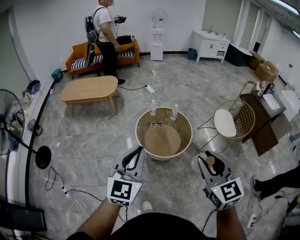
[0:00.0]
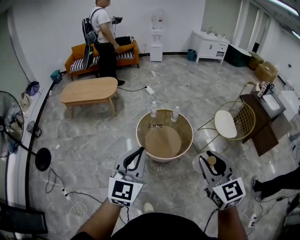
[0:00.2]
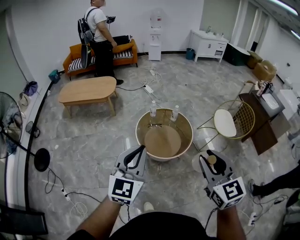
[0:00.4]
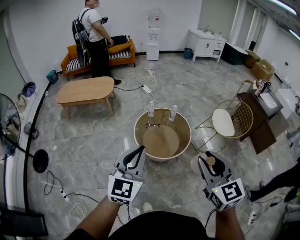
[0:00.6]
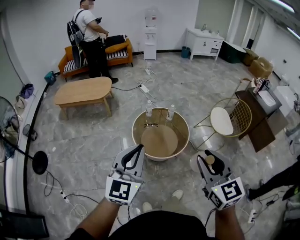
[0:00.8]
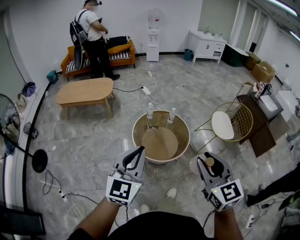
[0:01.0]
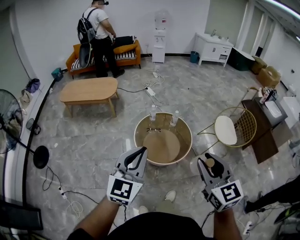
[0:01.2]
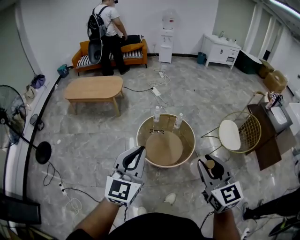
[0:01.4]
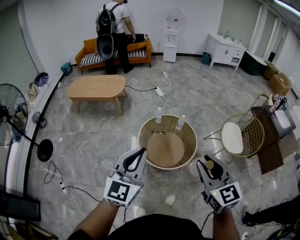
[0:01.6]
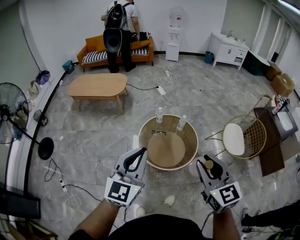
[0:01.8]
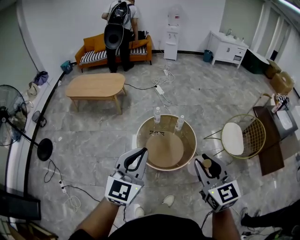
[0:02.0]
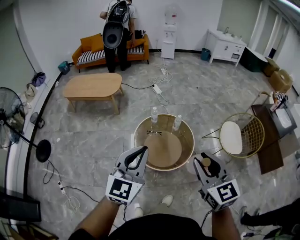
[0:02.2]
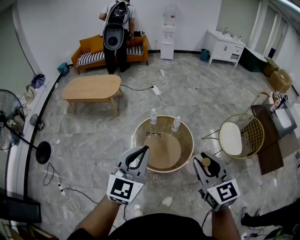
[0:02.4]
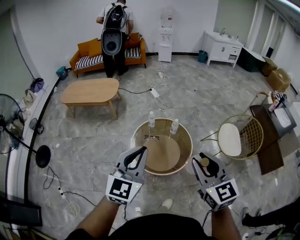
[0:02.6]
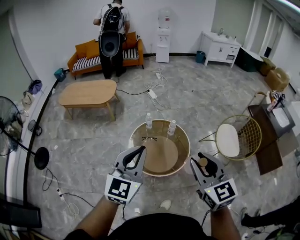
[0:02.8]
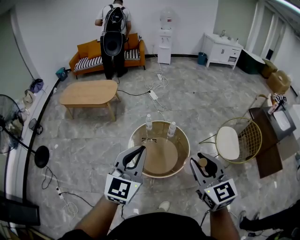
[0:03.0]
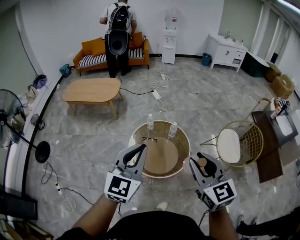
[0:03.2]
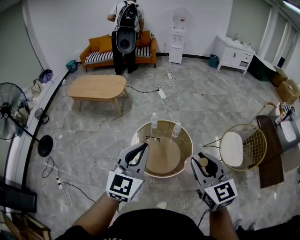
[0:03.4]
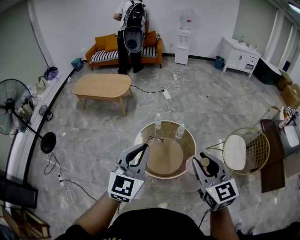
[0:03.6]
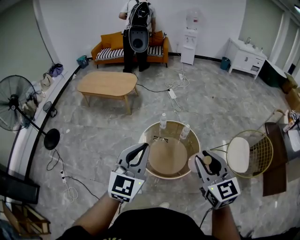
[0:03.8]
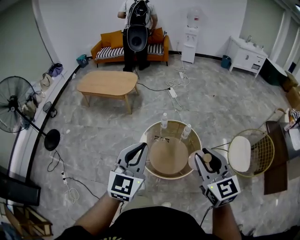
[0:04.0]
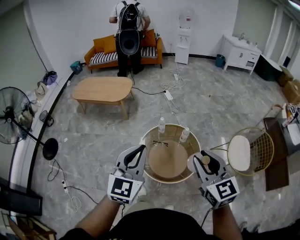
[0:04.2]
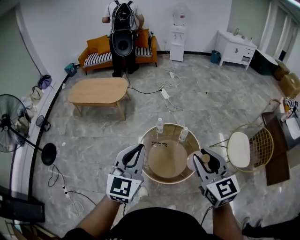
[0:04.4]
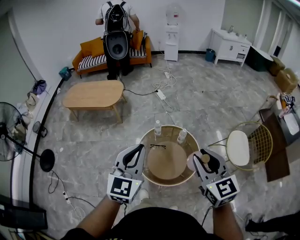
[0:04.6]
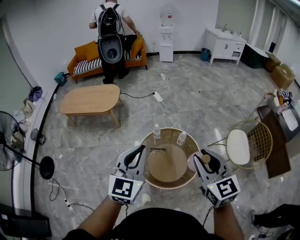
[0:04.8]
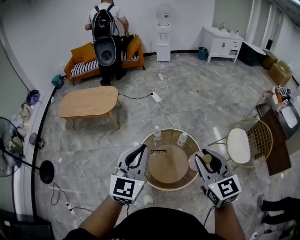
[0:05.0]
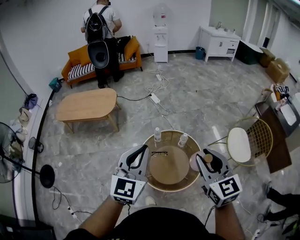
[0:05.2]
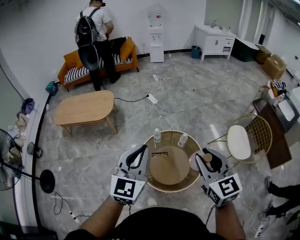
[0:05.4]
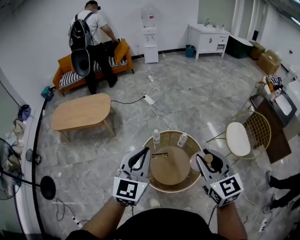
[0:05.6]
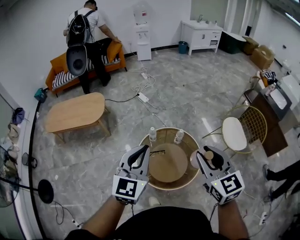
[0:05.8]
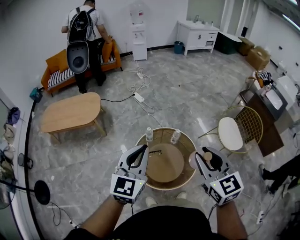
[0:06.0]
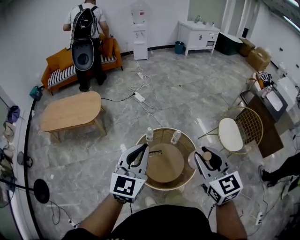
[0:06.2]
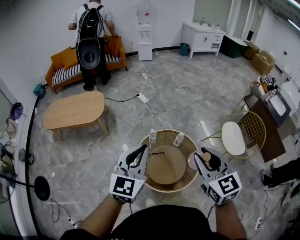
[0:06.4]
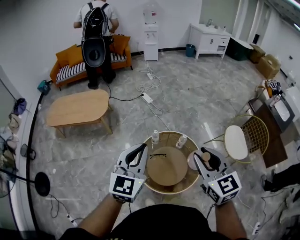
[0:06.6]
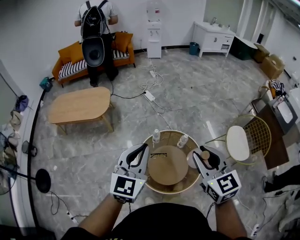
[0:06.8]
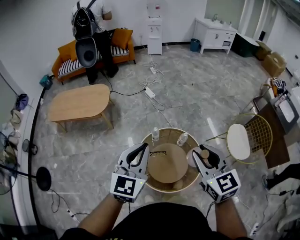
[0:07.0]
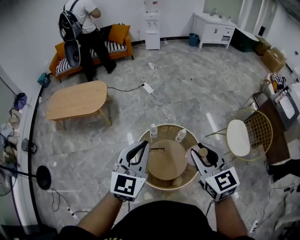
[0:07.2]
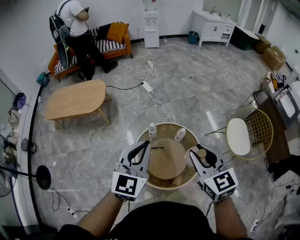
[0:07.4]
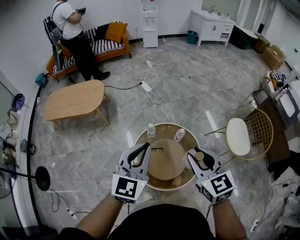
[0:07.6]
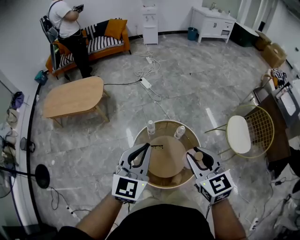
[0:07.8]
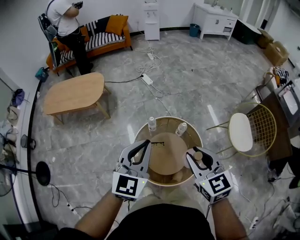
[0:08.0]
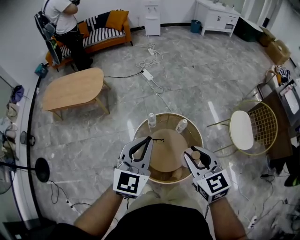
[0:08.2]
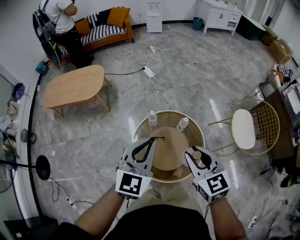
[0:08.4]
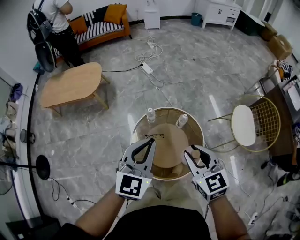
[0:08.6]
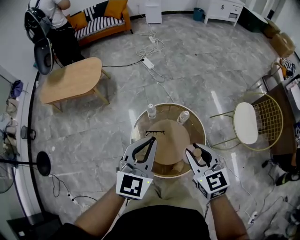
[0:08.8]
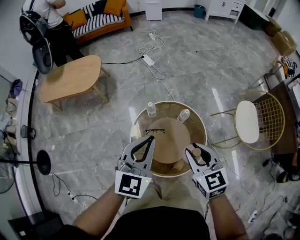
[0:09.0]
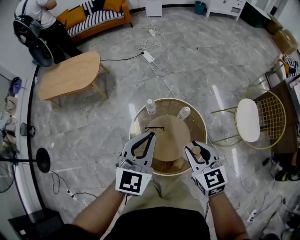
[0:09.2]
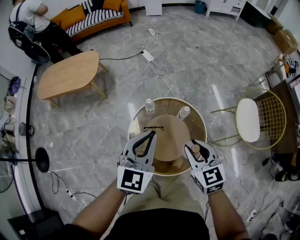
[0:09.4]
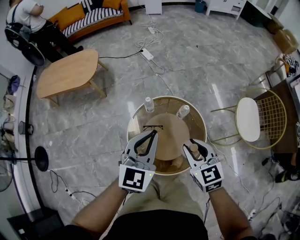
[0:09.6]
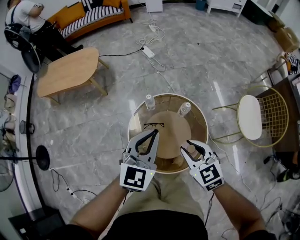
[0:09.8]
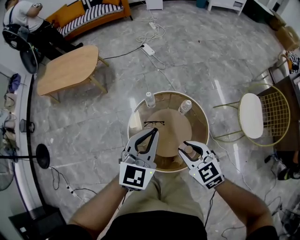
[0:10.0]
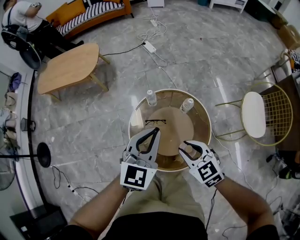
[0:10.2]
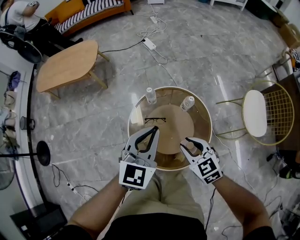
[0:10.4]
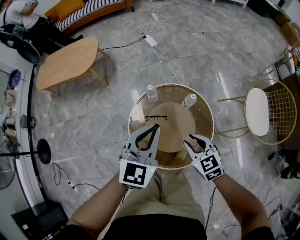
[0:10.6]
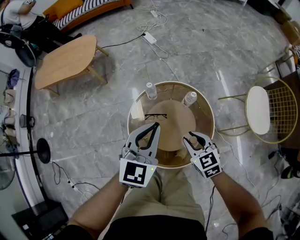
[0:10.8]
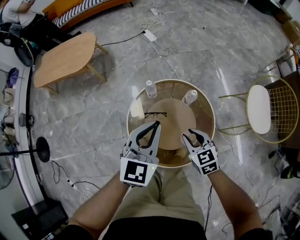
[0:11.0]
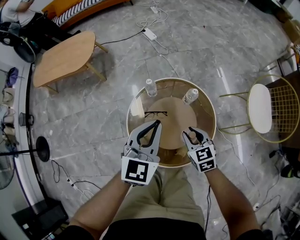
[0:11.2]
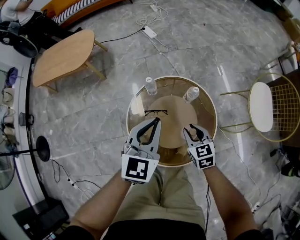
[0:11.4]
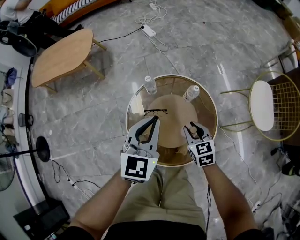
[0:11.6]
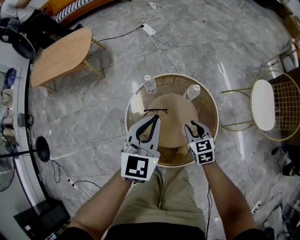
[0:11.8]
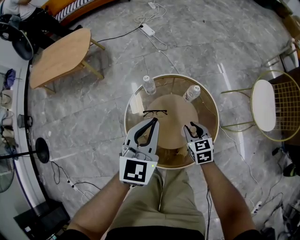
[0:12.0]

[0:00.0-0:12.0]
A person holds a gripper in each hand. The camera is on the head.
0:00.0 to 0:01.6: Both grippers travel together forward, some 10 cm.
0:01.6 to 0:03.0: The left gripper goes some 15 cm to the right and forward. The right gripper travels forward and to the right by approximately 10 cm.
0:03.0 to 0:04.4: Both grippers move forward, approximately 10 cm.
0:04.4 to 0:06.0: The left gripper moves forward and to the left, some 15 cm, and swivels about 20 degrees. Meanwhile the right gripper moves to the left and forward, approximately 10 cm.
0:06.0 to 0:07.6: The right gripper goes some 10 cm forward and downward. The left gripper shifts some 5 cm forward.
0:07.6 to 0:09.0: The two grippers go some 10 cm downward.
0:09.0 to 0:10.4: The right gripper heads downward, covering approximately 15 cm, while the left gripper goes roughly 10 cm downward.
0:10.4 to 0:12.0: The left gripper goes about 10 cm downward. The right gripper heads downward, covering about 20 cm, and changes its angle by roughly 20 degrees.

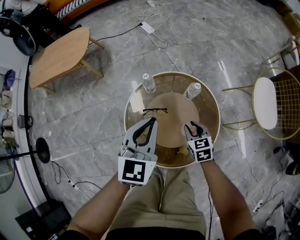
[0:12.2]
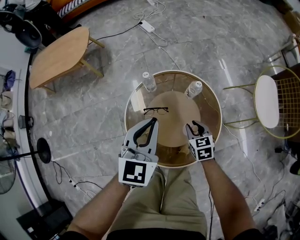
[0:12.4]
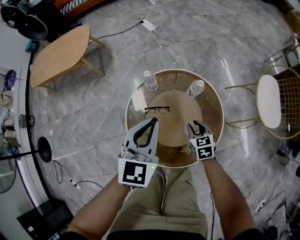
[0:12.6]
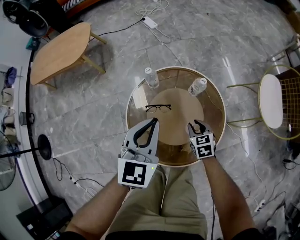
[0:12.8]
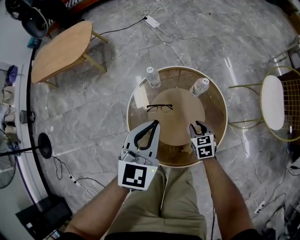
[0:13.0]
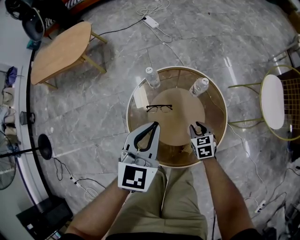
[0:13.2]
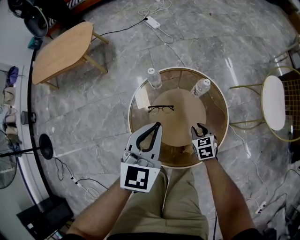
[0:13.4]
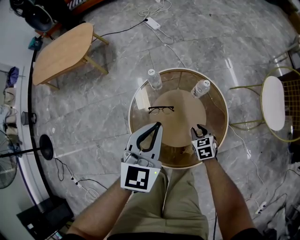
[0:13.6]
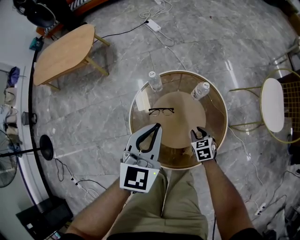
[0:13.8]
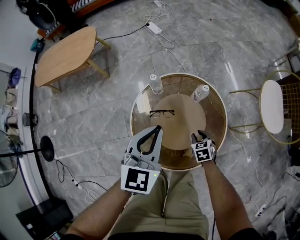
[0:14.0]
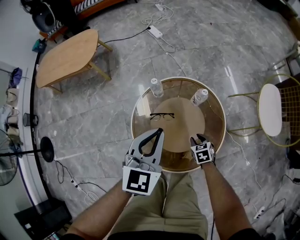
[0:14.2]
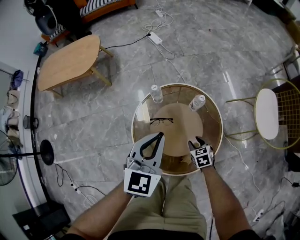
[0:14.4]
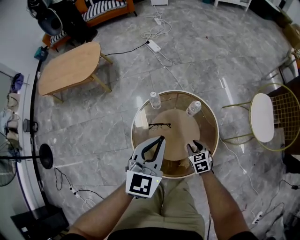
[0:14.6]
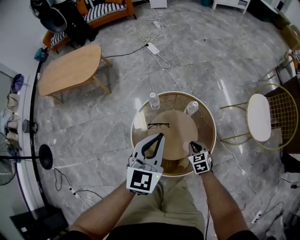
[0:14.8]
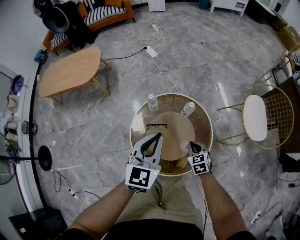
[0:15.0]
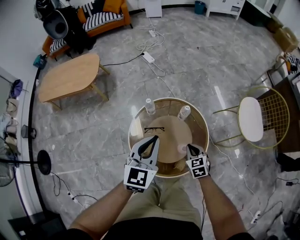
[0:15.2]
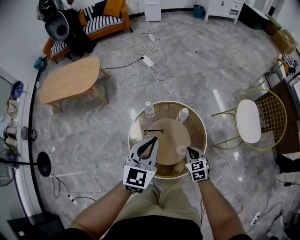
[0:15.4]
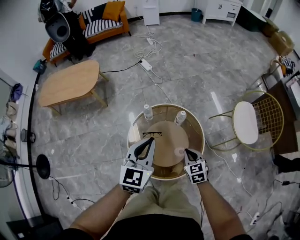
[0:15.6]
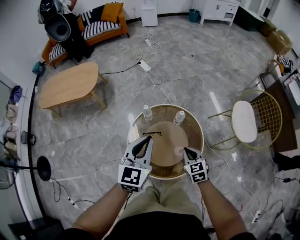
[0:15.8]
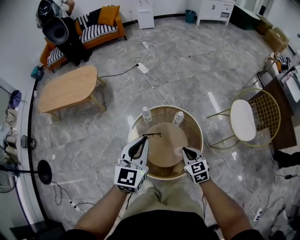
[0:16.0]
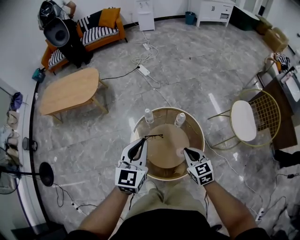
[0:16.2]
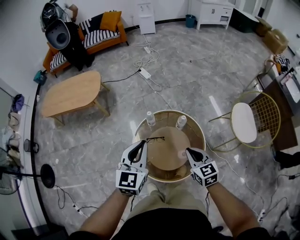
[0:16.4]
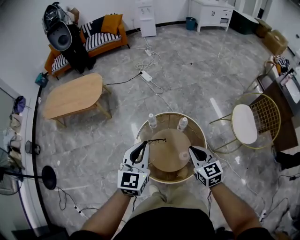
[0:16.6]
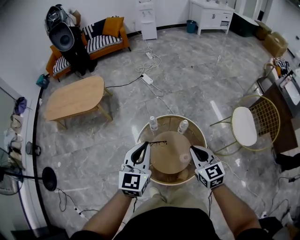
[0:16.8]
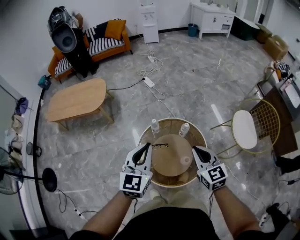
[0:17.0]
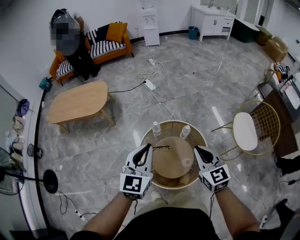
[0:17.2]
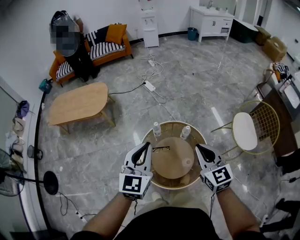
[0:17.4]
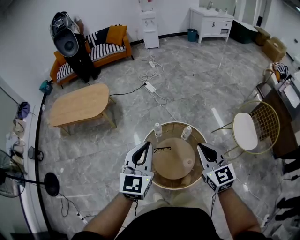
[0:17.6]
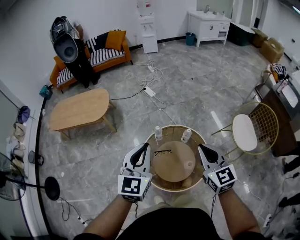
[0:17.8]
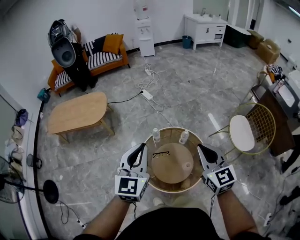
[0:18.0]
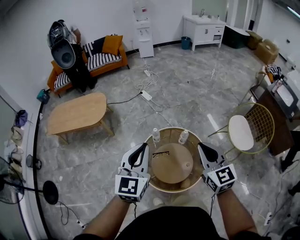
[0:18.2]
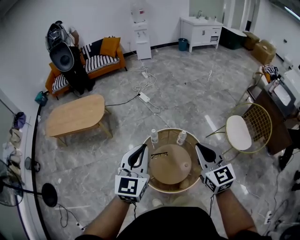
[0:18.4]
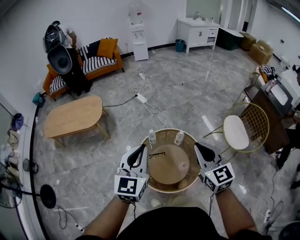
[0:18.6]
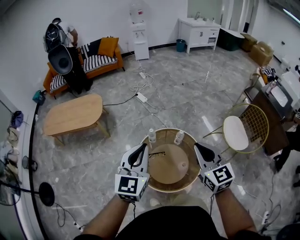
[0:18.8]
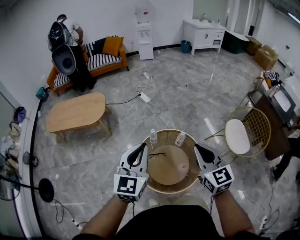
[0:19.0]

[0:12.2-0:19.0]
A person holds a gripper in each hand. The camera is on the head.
0:12.2 to 0:13.6: The right gripper is displaced downward by approximately 10 cm.
0:13.6 to 0:15.0: The grippers both shift upward by approximately 15 cm. The right gripper closes up.
0:15.0 to 0:16.2: The right gripper is displaced upward by about 20 cm, while the left gripper heads upward, covering approximately 10 cm.
0:16.2 to 0:17.6: The right gripper travels upward by roughly 20 cm, while the left gripper travels upward by approximately 10 cm.
0:17.6 to 0:19.0: The left gripper shifts by about 5 cm, while the right gripper is displaced upward by roughly 5 cm.

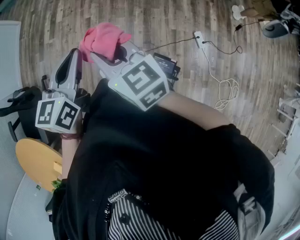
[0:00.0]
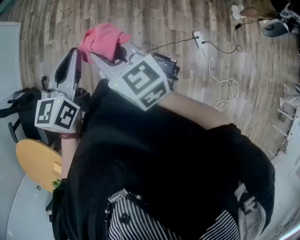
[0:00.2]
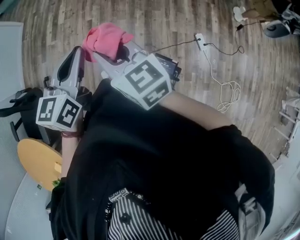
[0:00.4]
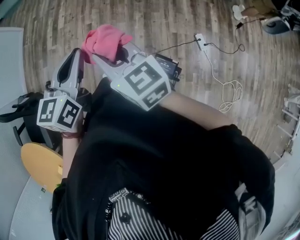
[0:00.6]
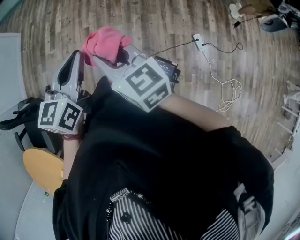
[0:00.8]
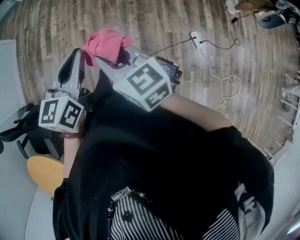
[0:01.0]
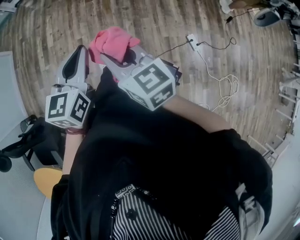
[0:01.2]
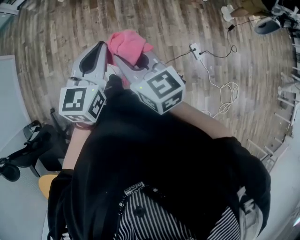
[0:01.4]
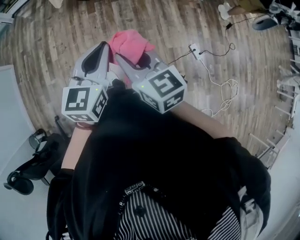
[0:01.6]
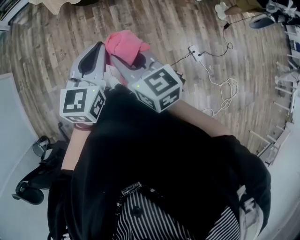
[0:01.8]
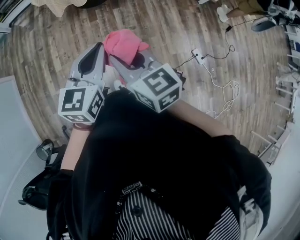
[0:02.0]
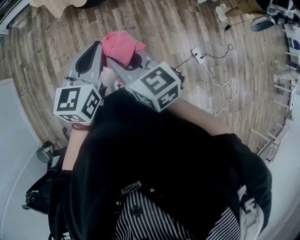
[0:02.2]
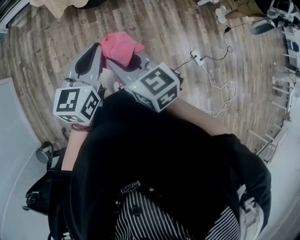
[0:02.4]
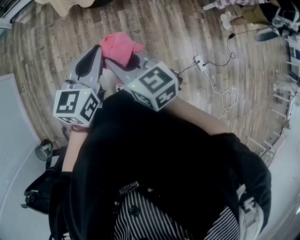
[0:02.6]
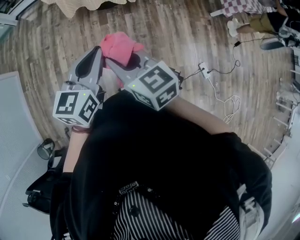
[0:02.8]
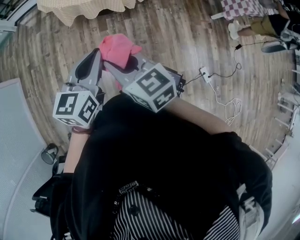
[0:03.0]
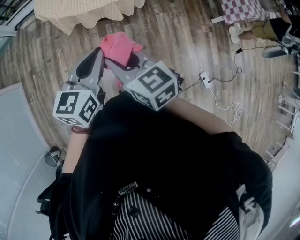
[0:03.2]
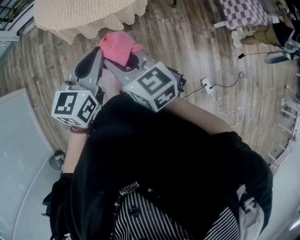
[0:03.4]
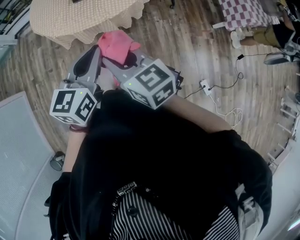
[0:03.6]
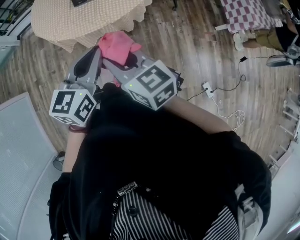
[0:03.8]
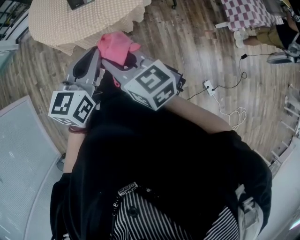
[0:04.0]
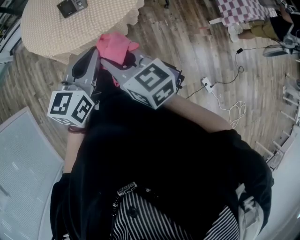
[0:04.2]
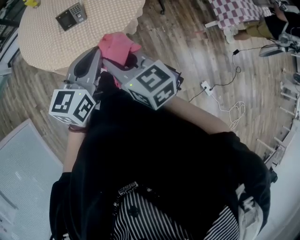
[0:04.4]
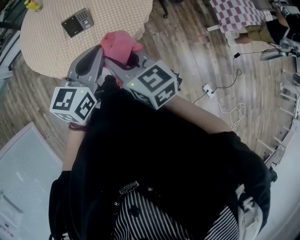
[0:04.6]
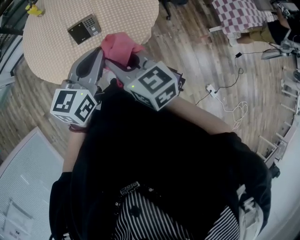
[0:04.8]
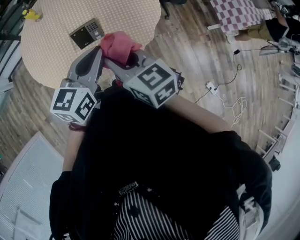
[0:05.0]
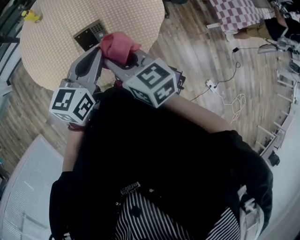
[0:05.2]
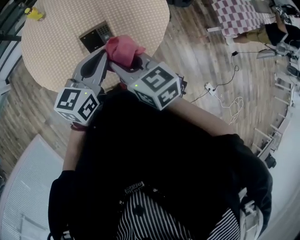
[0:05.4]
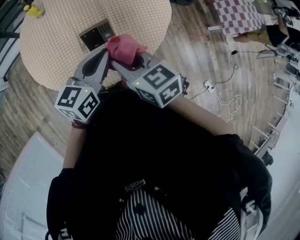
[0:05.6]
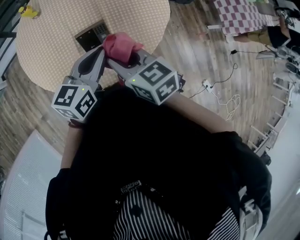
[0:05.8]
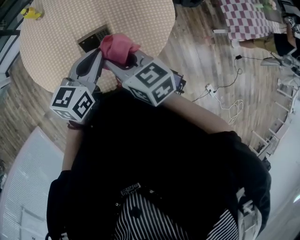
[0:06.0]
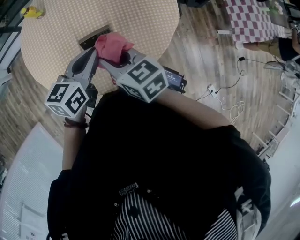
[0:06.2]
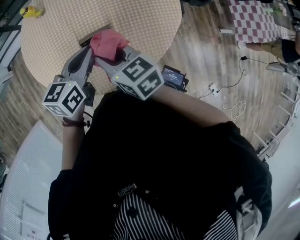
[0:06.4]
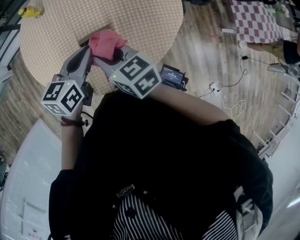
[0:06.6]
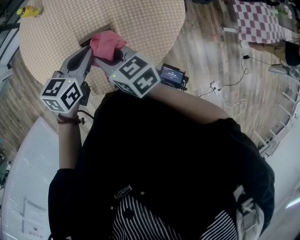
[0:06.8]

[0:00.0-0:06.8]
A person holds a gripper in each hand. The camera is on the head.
0:00.0 to 0:01.4: The grippers both shift forward by approximately 25 cm.
0:01.4 to 0:02.8: The two grippers go about 35 cm forward and to the left.
0:02.8 to 0:04.0: The grippers both shift forward and to the right by some 40 cm.
0:04.0 to 0:05.4: Both grippers travel together forward and to the left, some 40 cm.
0:05.4 to 0:06.8: The grippers both shift forward and downward by some 15 cm.
